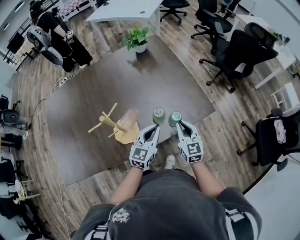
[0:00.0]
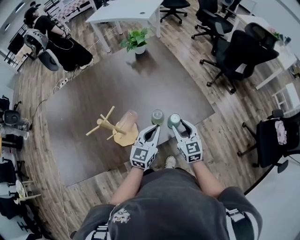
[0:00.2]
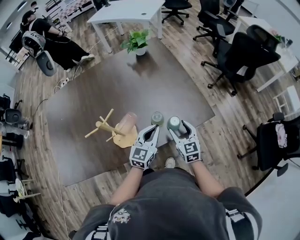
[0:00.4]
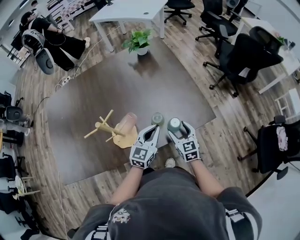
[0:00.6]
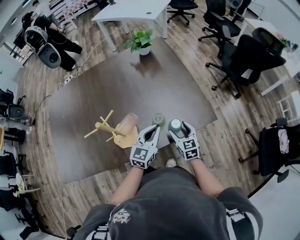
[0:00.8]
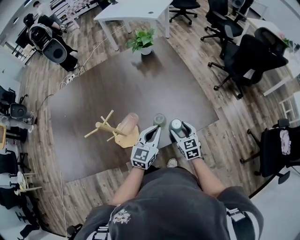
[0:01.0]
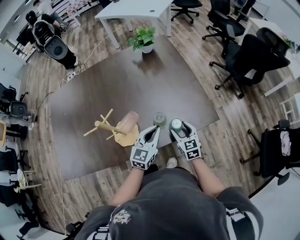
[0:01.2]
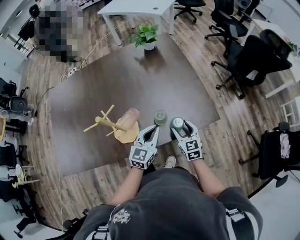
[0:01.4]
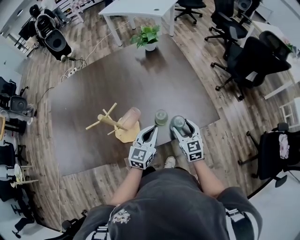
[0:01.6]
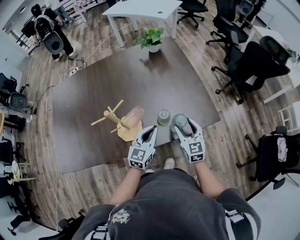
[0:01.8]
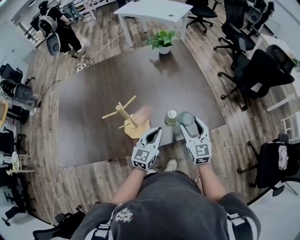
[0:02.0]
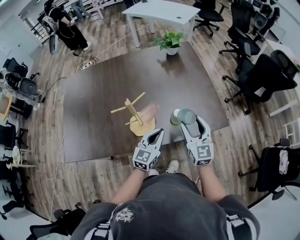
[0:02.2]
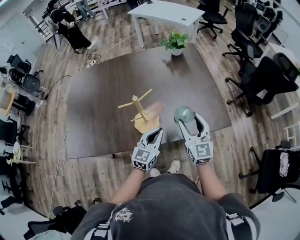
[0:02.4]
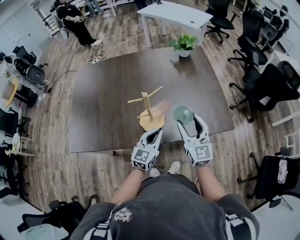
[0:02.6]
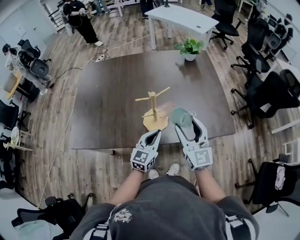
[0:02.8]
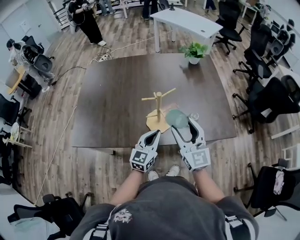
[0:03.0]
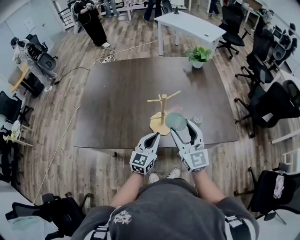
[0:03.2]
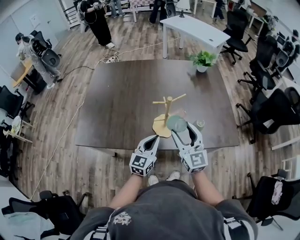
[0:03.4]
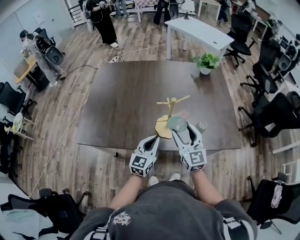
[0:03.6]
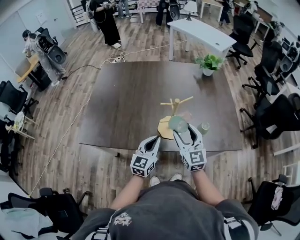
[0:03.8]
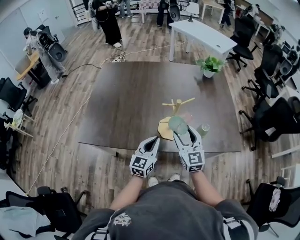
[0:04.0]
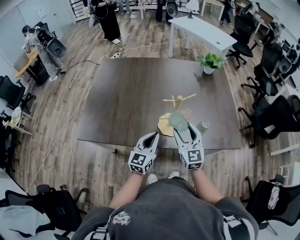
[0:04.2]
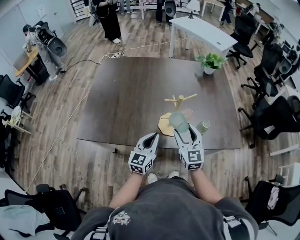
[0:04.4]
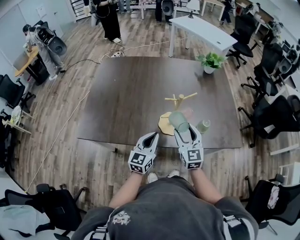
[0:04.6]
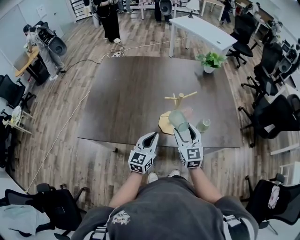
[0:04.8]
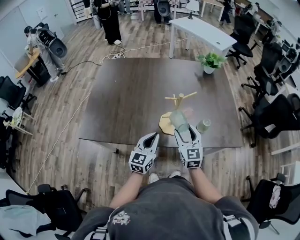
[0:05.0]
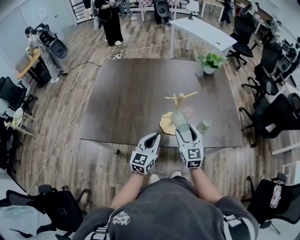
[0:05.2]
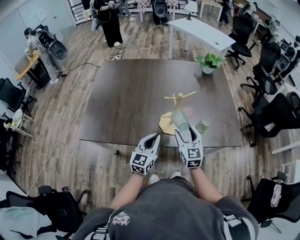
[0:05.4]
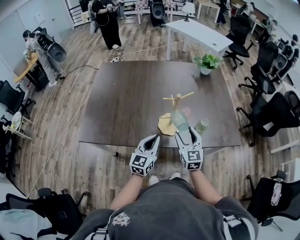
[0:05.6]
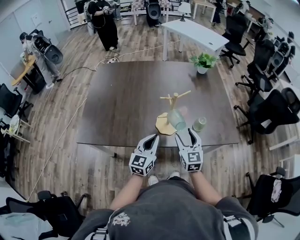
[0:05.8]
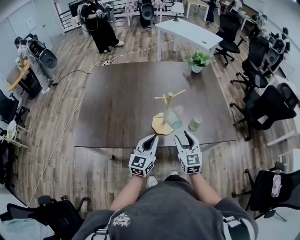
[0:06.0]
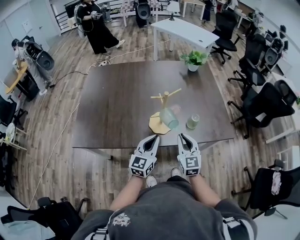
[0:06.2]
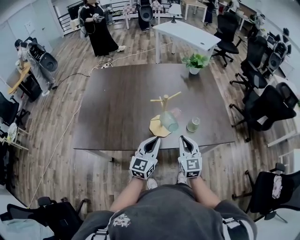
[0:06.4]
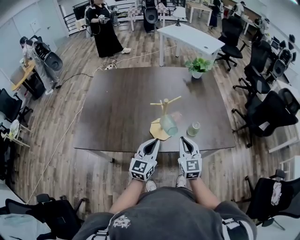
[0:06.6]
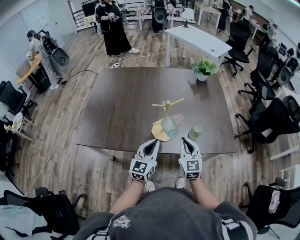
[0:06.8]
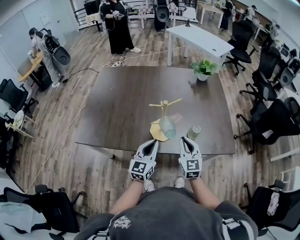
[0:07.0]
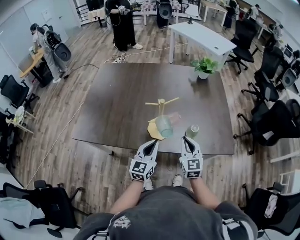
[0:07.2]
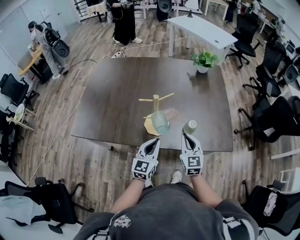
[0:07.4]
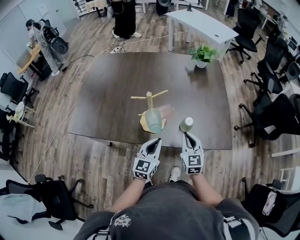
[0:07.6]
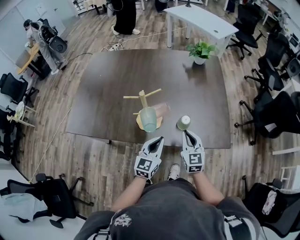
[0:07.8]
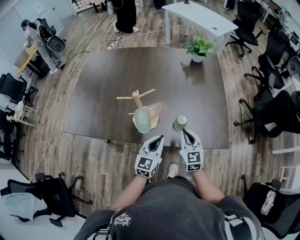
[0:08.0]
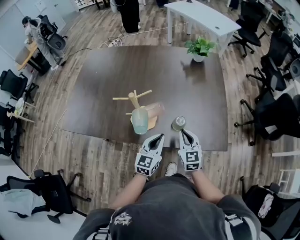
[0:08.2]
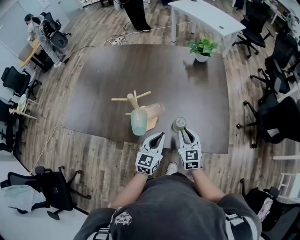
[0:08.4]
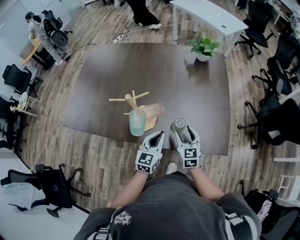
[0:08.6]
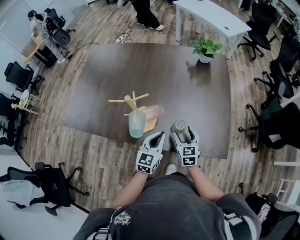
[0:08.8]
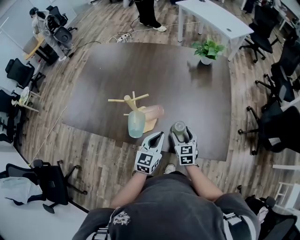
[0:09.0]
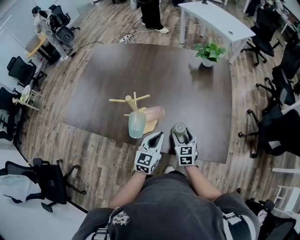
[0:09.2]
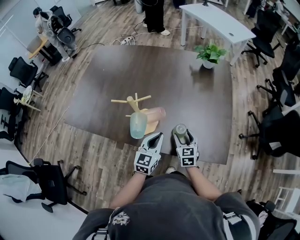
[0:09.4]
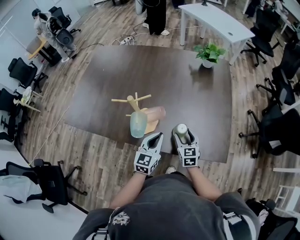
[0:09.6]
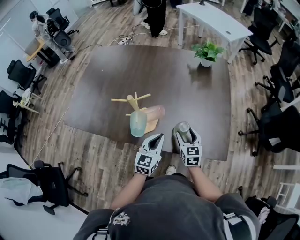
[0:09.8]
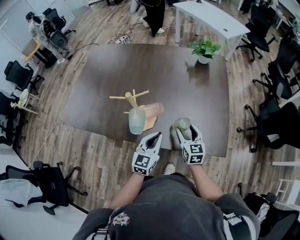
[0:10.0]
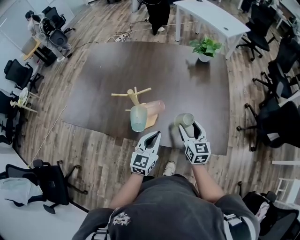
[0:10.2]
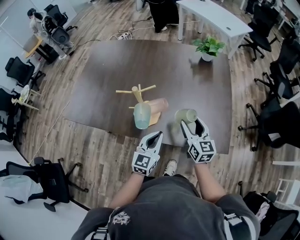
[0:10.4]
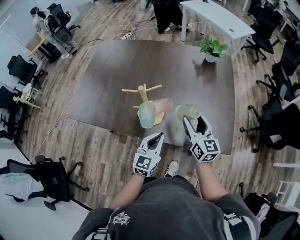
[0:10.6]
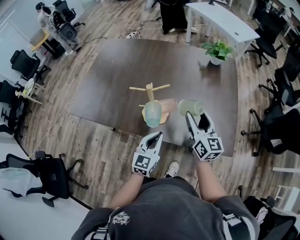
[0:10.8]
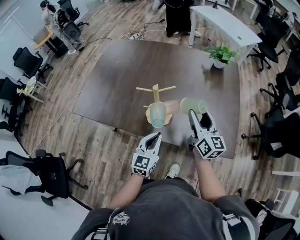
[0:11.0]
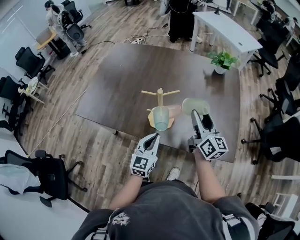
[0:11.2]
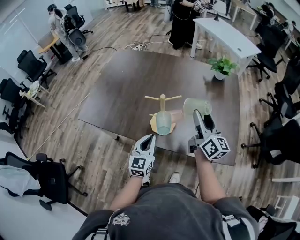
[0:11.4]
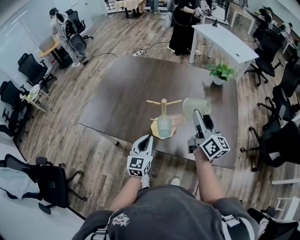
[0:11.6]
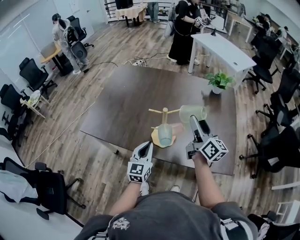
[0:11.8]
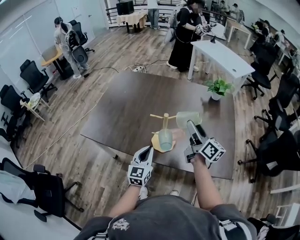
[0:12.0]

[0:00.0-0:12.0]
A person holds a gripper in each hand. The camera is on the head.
0:00.0 to 0:01.6: The right gripper opens up.
0:01.6 to 0:03.0: The right gripper is displaced upward, to the left and backward by approximately 30 cm, and rotates some 30 degrees. Meanwhile the left gripper travels to the left and backward by some 20 cm.
0:03.0 to 0:04.4: The right gripper shifts approximately 10 cm downward and to the left; the left gripper heads to the left, covering roughly 10 cm.
0:04.4 to 0:06.0: The right gripper shifts by roughly 5 cm.
0:06.0 to 0:07.6: Both grippers travel together to the right, roughly 10 cm. The right gripper closes its fingers.
0:07.6 to 0:09.0: The right gripper moves downward and forward, some 15 cm, and opens; the left gripper travels to the right and forward by approximately 10 cm.
0:09.0 to 0:10.4: The left gripper shifts by about 5 cm. The right gripper shifts about 15 cm upward, and swivels some 20 degrees.
0:10.4 to 0:12.0: The left gripper shifts approximately 15 cm to the left, while the right gripper heads upward and to the left, covering roughly 15 cm, and turns by roughly 40 degrees.

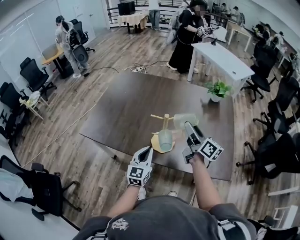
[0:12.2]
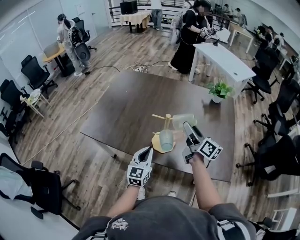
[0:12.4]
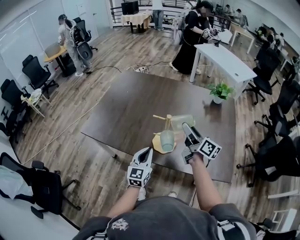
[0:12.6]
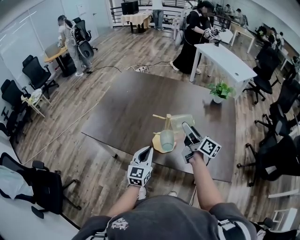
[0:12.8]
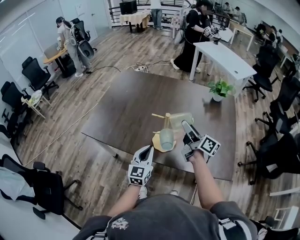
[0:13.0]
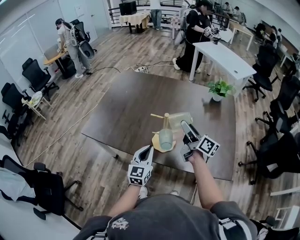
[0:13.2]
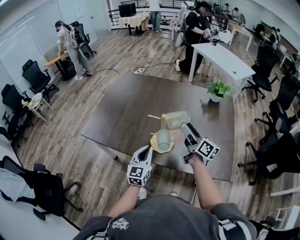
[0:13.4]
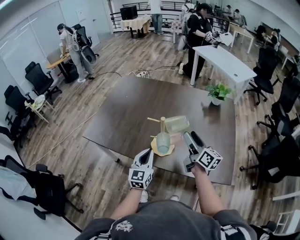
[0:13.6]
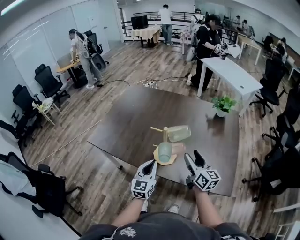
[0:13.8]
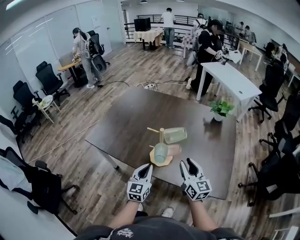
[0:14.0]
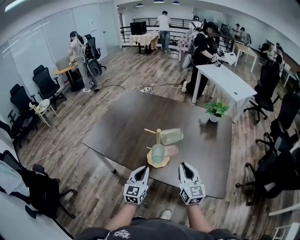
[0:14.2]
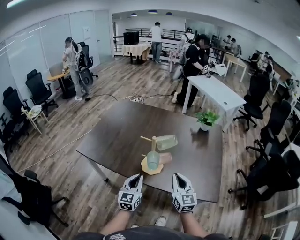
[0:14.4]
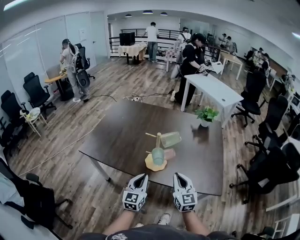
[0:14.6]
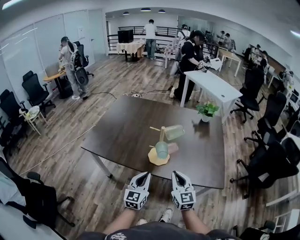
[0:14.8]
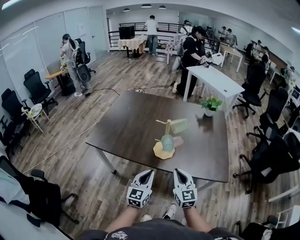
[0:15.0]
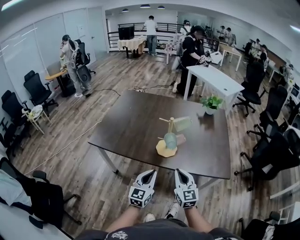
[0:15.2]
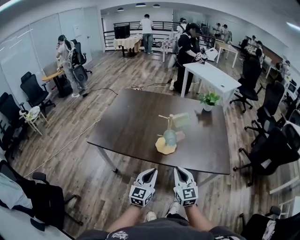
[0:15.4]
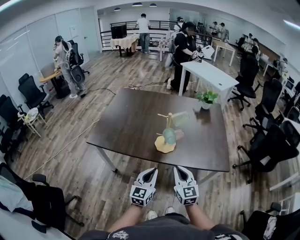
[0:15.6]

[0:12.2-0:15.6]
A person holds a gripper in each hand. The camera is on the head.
0:12.2 to 0:13.8: The right gripper moves backward, approximately 5 cm, and swivels some 20 degrees.
0:13.8 to 0:15.6: The left gripper moves backward, about 15 cm. The right gripper is displaced backward and to the left by about 25 cm, changes its angle by about 30 degrees, and closes.

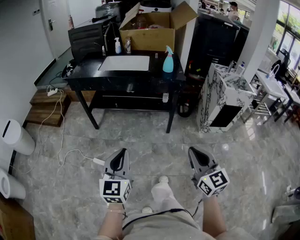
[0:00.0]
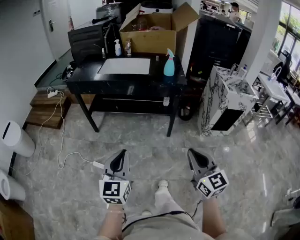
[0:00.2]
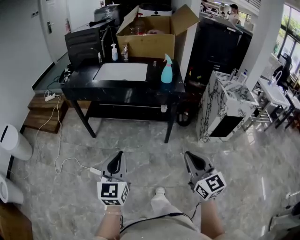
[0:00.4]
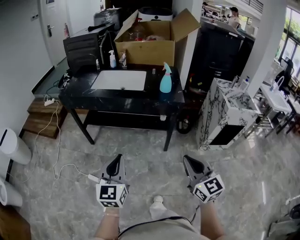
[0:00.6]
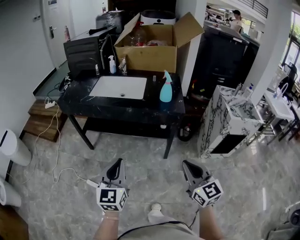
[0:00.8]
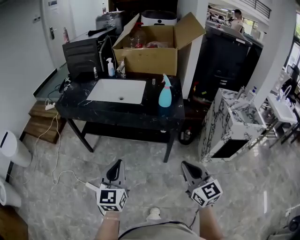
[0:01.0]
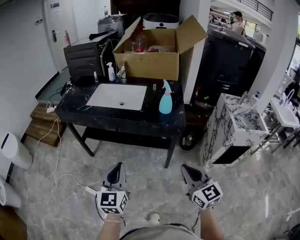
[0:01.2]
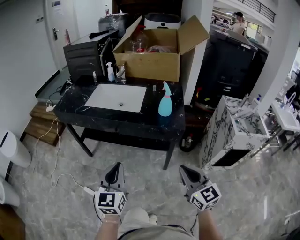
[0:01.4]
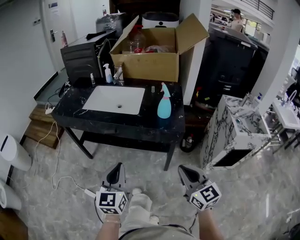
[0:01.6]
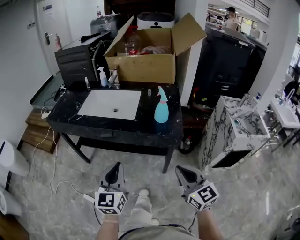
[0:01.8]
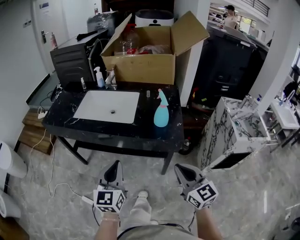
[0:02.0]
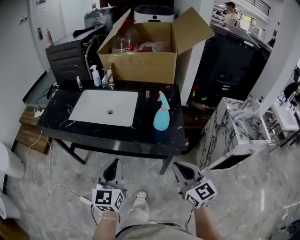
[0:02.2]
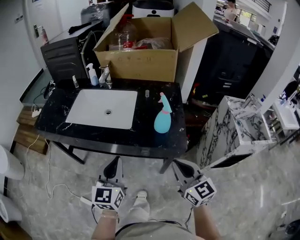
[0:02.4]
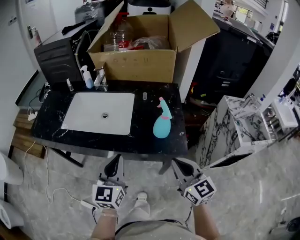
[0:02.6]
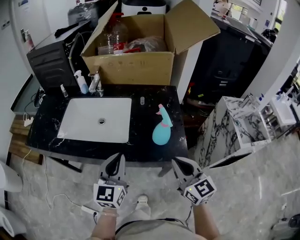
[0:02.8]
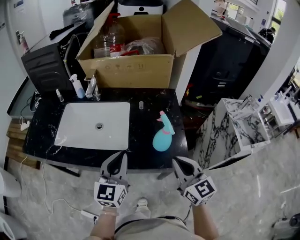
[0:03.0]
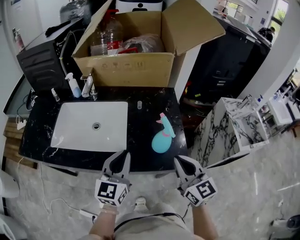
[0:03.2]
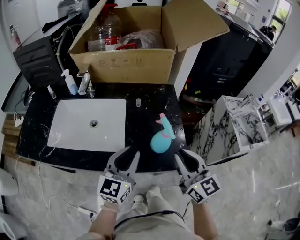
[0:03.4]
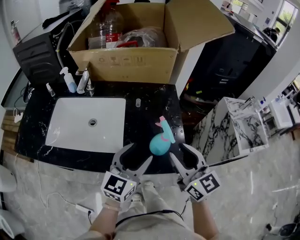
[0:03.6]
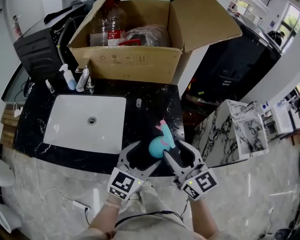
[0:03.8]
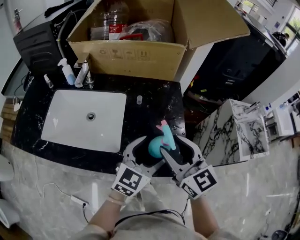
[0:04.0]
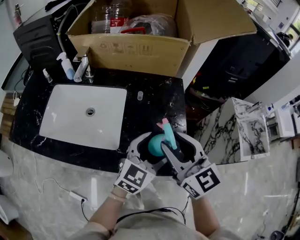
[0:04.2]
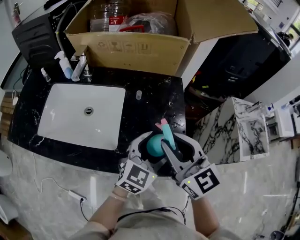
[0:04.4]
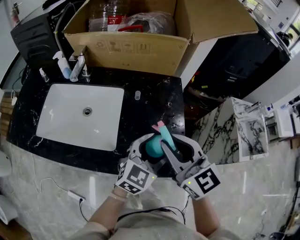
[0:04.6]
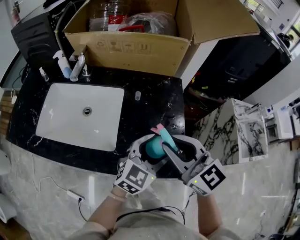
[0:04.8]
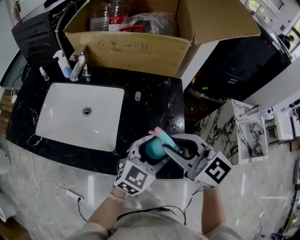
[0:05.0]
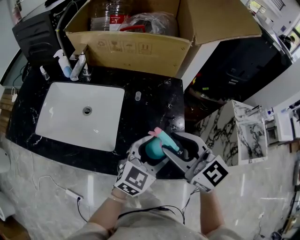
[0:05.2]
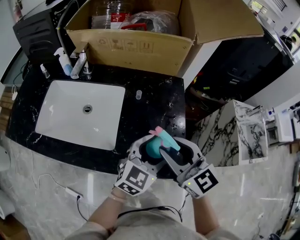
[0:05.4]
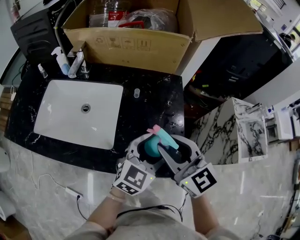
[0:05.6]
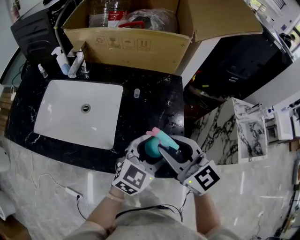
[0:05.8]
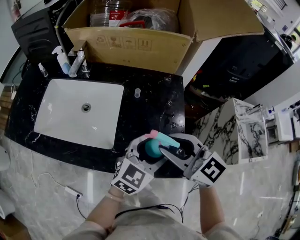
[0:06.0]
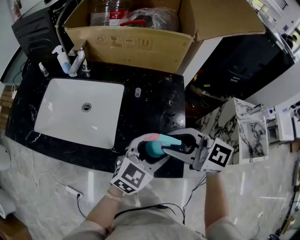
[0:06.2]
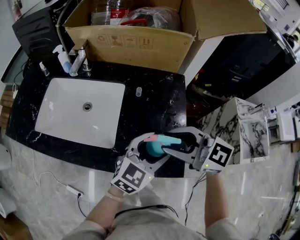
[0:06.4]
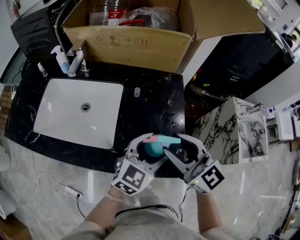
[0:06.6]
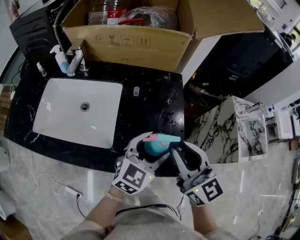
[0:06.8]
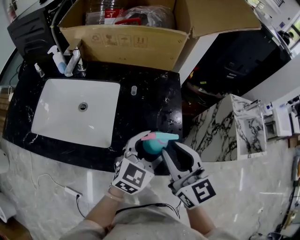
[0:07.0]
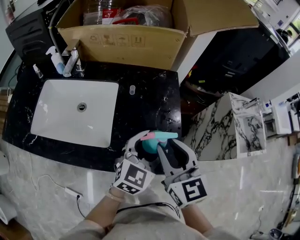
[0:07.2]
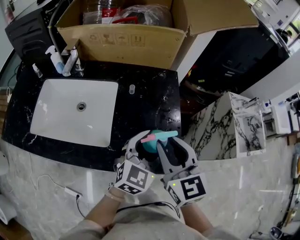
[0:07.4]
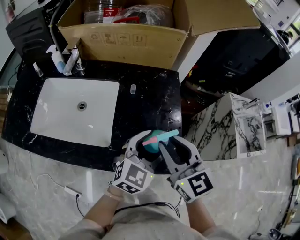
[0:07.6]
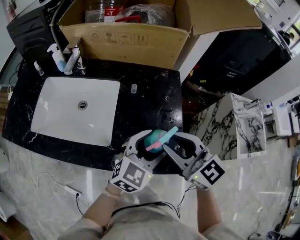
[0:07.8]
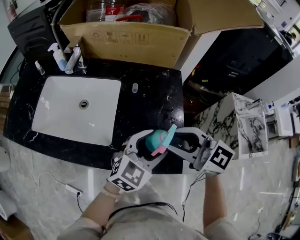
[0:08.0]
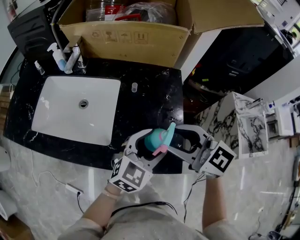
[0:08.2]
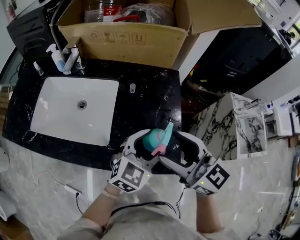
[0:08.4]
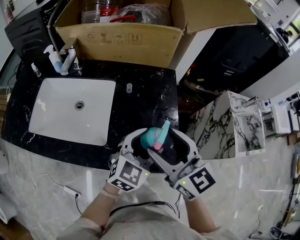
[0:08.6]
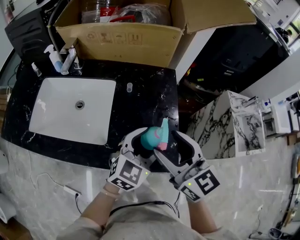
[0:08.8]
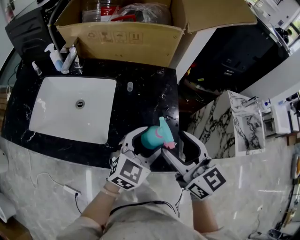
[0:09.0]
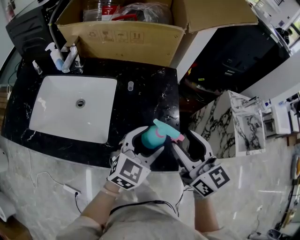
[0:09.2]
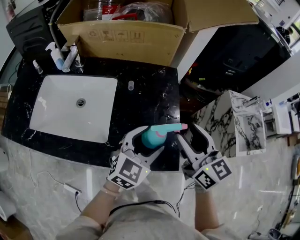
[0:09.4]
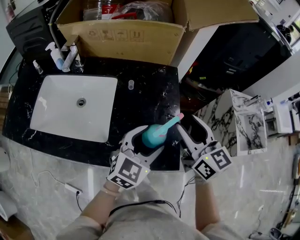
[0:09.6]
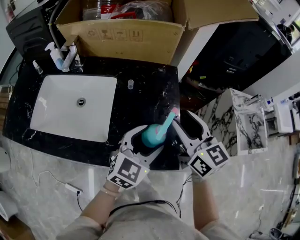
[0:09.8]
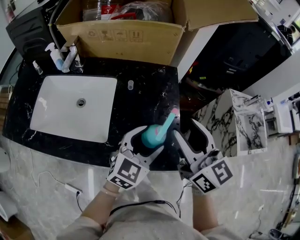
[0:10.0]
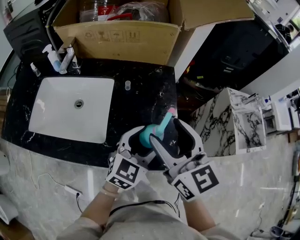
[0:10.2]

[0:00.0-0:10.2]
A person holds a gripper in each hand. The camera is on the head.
0:00.0 to 0:01.4: Both grippers travel together forward and to the right, roughly 30 cm.
0:01.4 to 0:03.0: The grippers both shift forward by approximately 30 cm.
0:03.0 to 0:04.4: The left gripper heads to the right and forward, covering approximately 20 cm, turns by approximately 30 degrees, and opens. Meanwhile the right gripper is displaced forward by about 10 cm.
0:05.8 to 0:07.2: The right gripper swivels approximately 20 degrees.
0:07.2 to 0:08.8: The right gripper opens.
